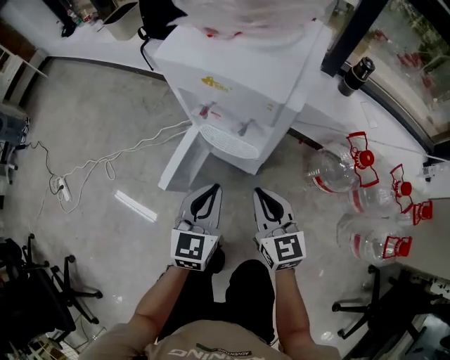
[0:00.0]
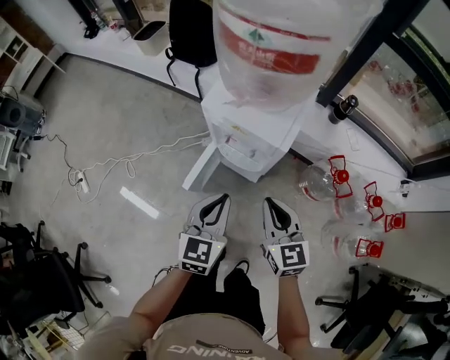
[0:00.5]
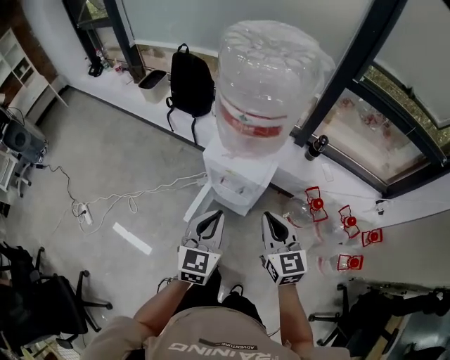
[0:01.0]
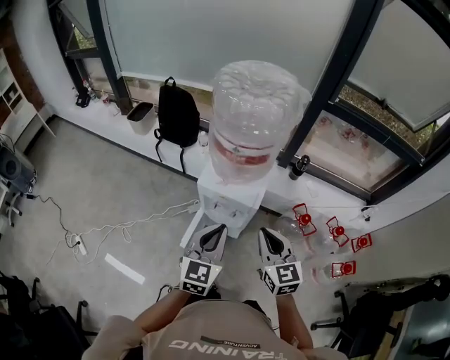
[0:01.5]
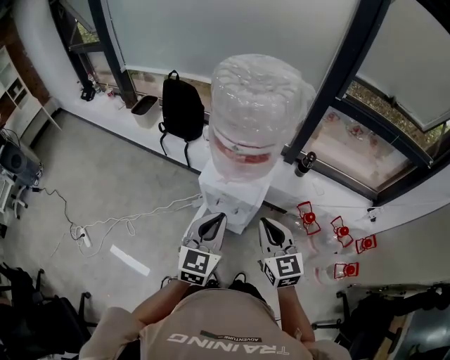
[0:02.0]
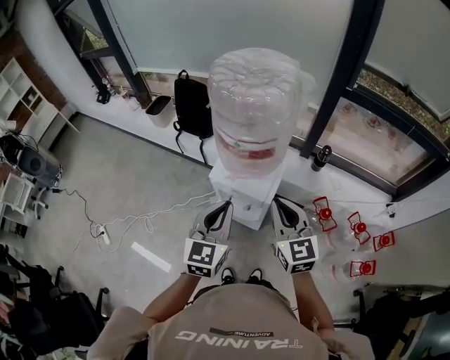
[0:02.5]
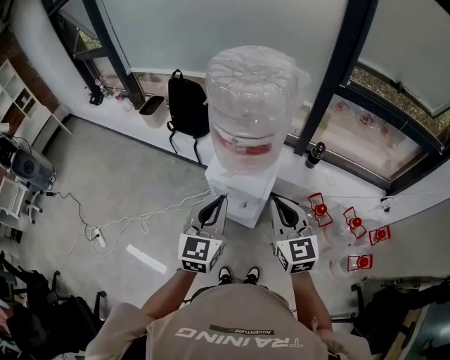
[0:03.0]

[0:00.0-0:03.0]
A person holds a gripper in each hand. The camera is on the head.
0:00.0 to 0:01.5: The grippers both shift upward by roughly 40 cm.
0:01.5 to 0:03.0: Both grippers travel together forward, roughly 5 cm.

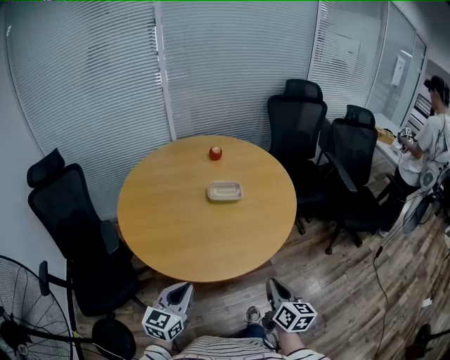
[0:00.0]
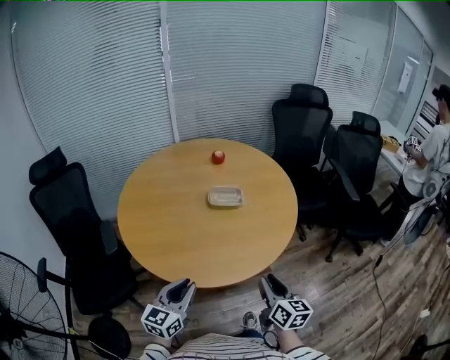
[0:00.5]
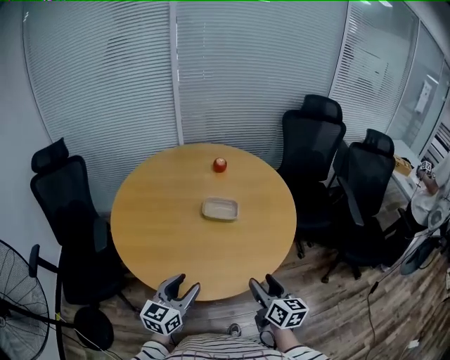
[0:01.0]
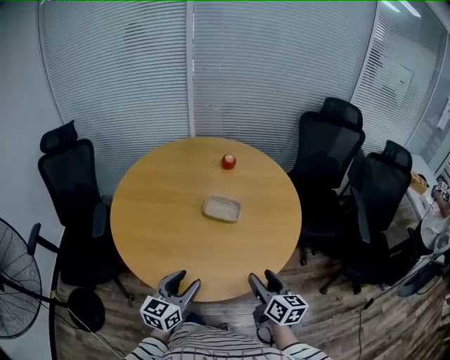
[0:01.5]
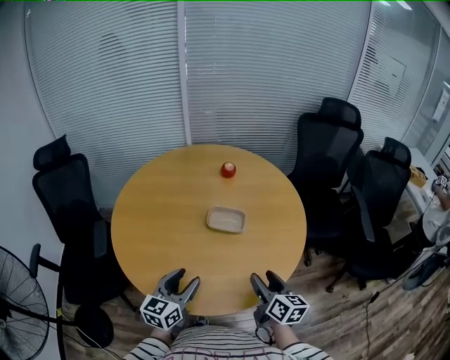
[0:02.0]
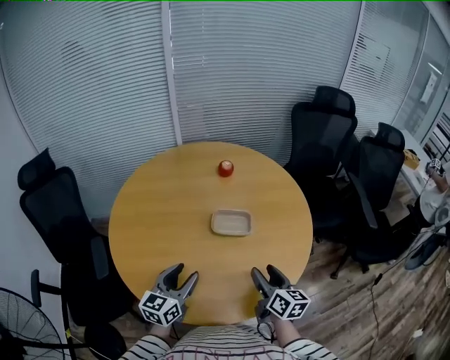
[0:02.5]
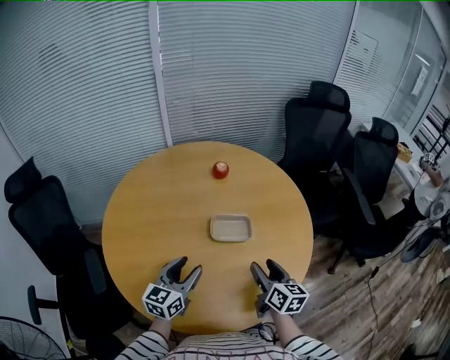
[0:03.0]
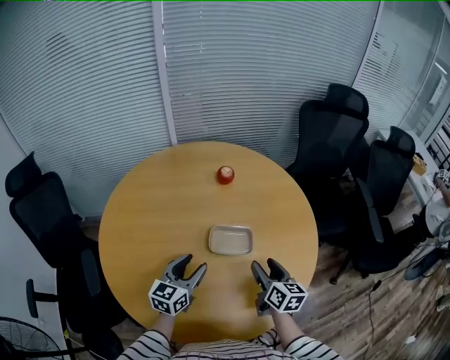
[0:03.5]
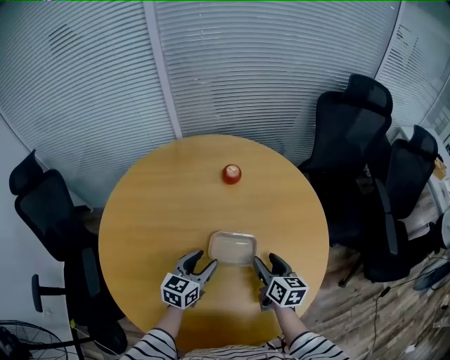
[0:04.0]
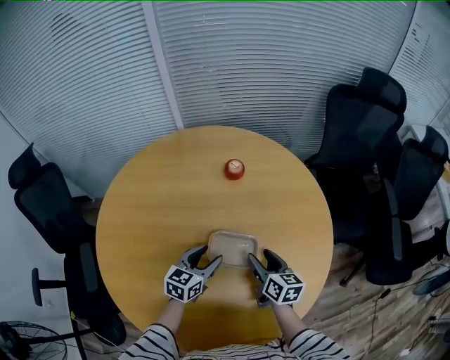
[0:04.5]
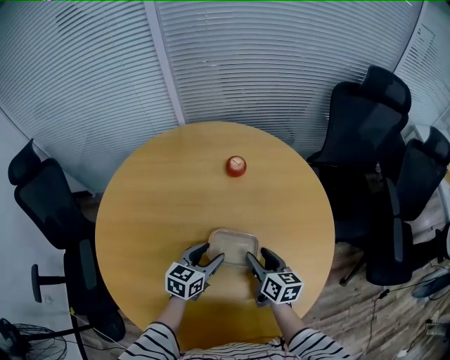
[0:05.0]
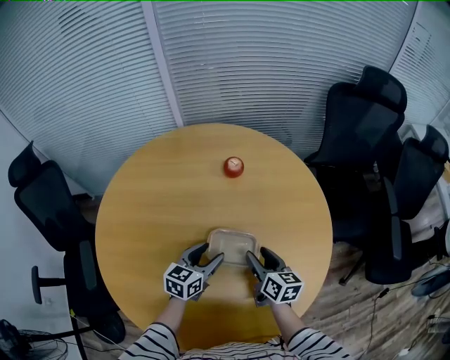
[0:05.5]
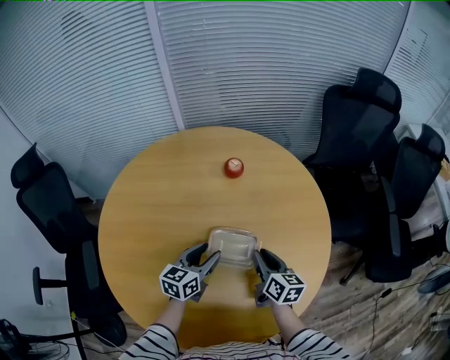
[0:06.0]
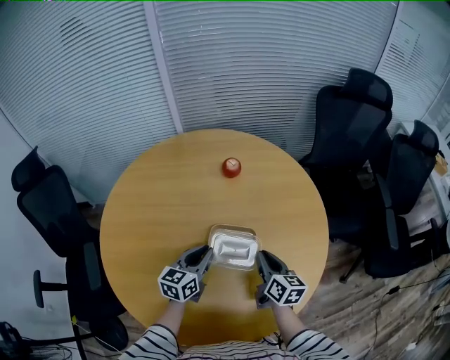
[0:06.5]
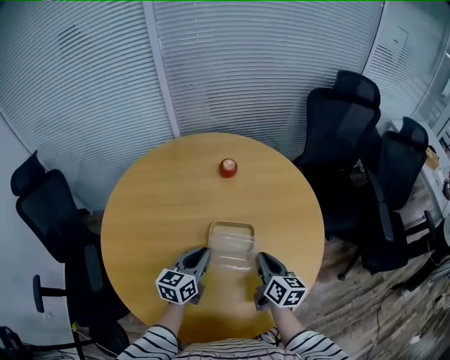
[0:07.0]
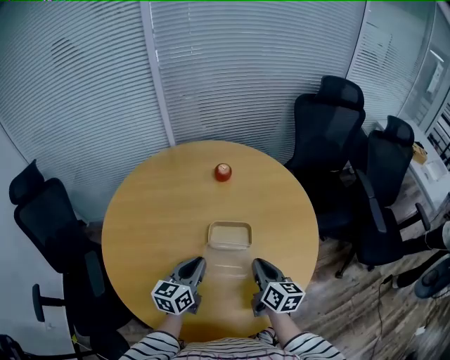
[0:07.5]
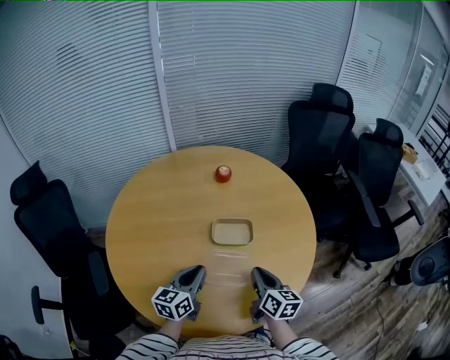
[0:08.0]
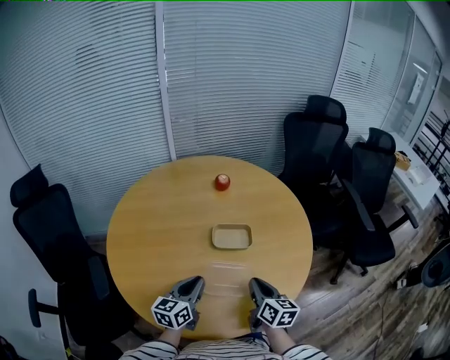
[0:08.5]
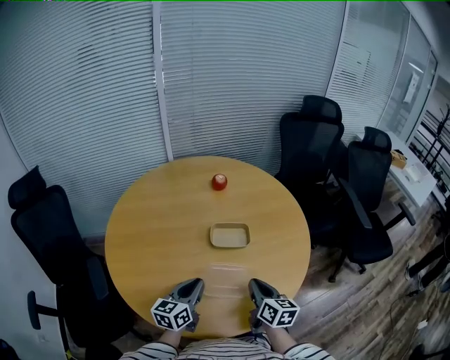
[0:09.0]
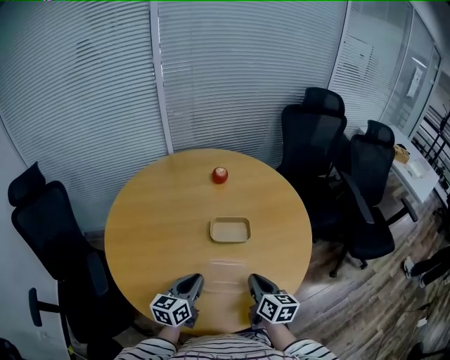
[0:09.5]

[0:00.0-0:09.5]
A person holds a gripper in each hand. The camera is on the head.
0:00.0 to 0:02.0: Both grippers move forward, about 25 cm. The left gripper opens its fingers. The right gripper opens.
0:02.0 to 0:04.0: Both grippers move forward, roughly 30 cm.
0:04.0 to 0:05.5: There are only small adjustments of the grippers.
0:05.5 to 0:07.5: The two grippers go some 15 cm backward and upward. The right gripper closes, while the left gripper closes up.
0:07.5 to 0:09.5: The grippers both shift backward by some 10 cm.

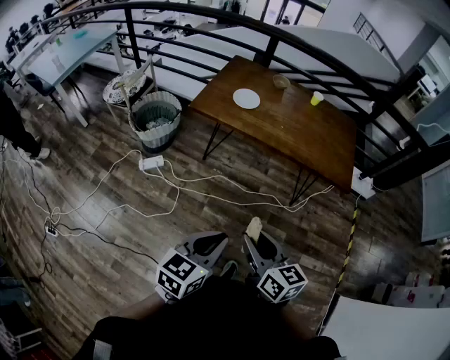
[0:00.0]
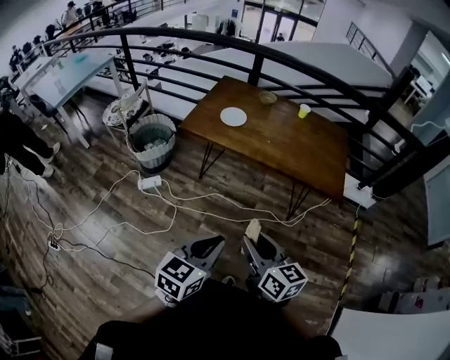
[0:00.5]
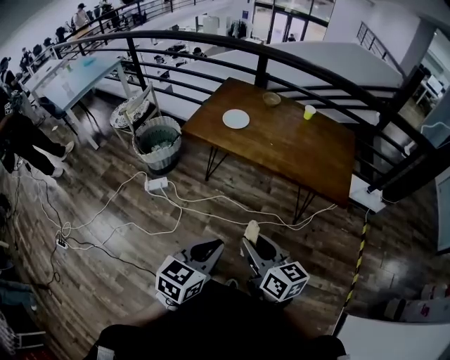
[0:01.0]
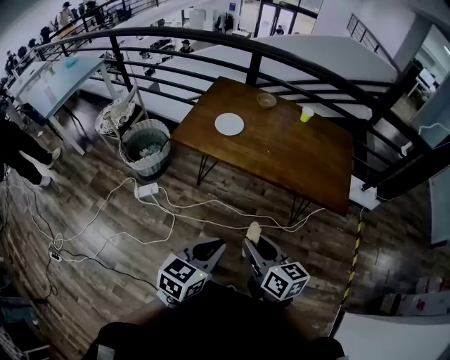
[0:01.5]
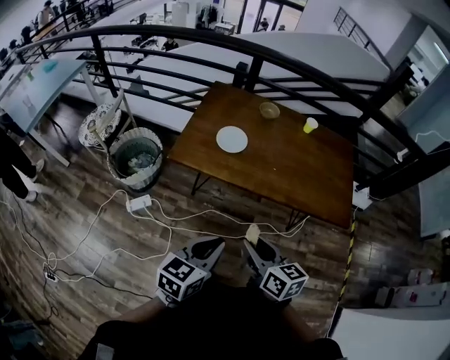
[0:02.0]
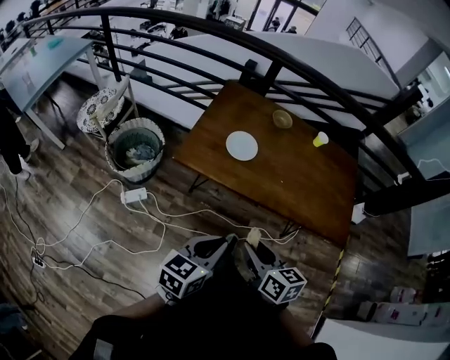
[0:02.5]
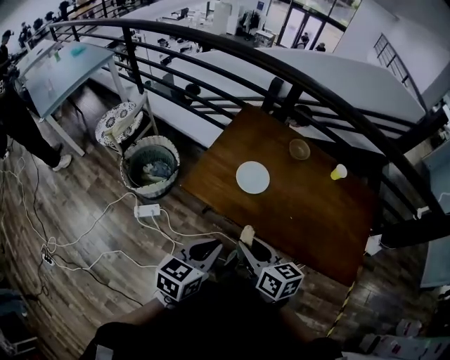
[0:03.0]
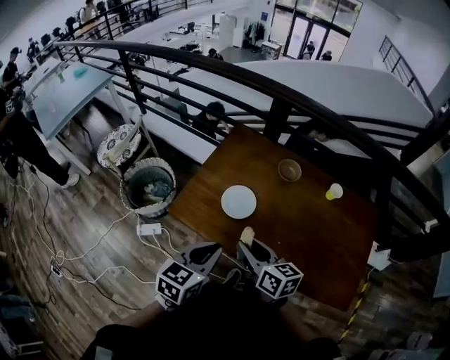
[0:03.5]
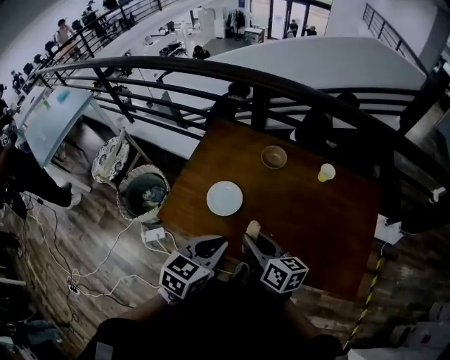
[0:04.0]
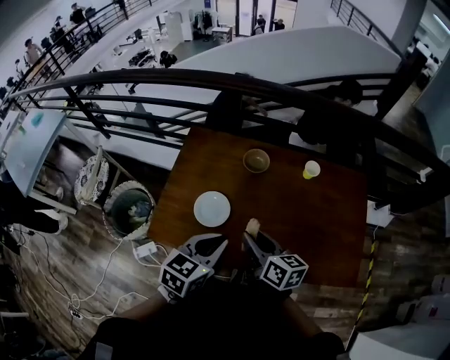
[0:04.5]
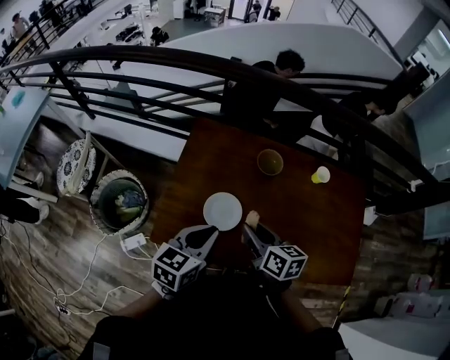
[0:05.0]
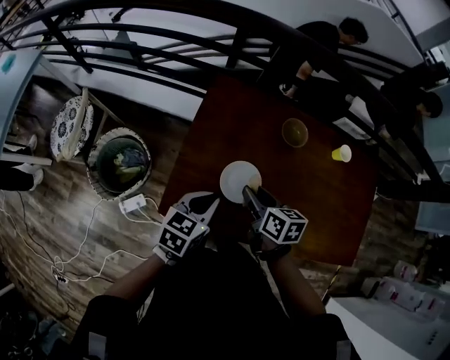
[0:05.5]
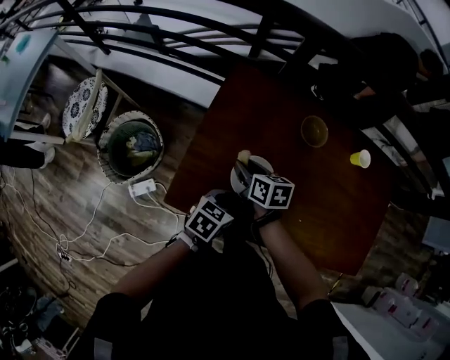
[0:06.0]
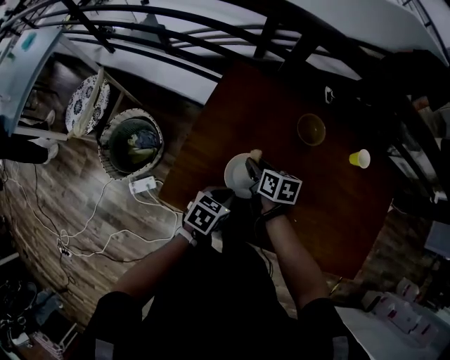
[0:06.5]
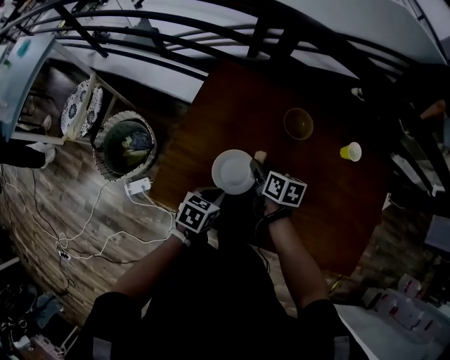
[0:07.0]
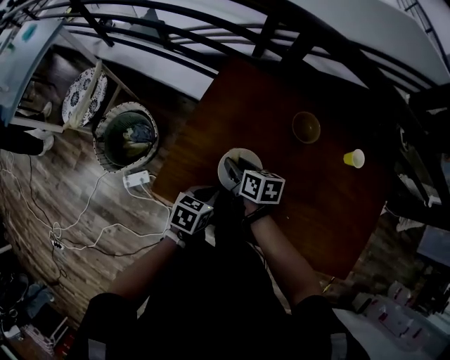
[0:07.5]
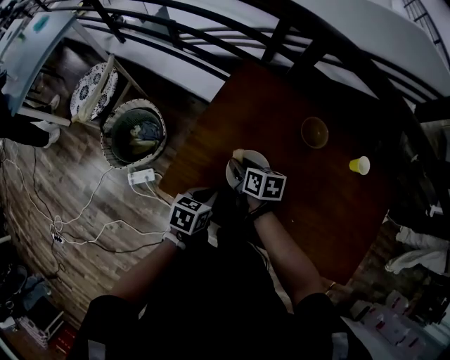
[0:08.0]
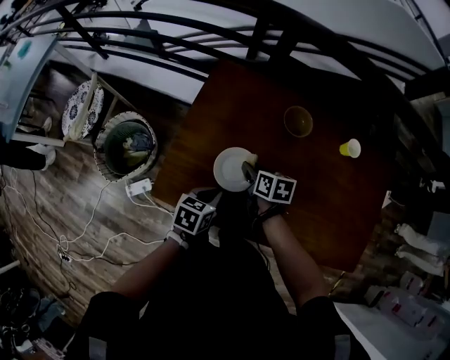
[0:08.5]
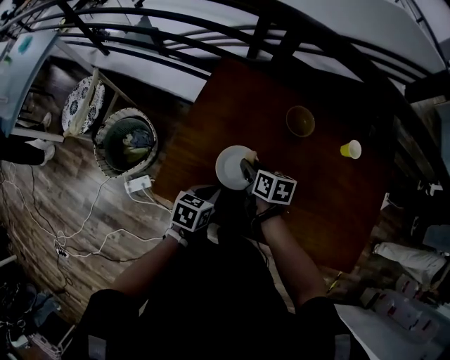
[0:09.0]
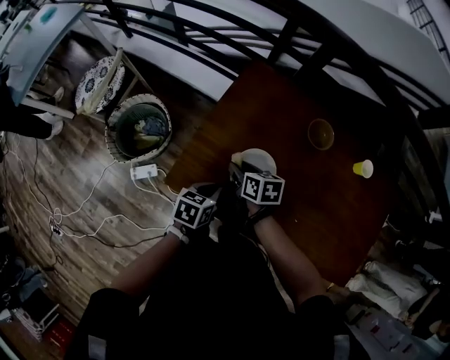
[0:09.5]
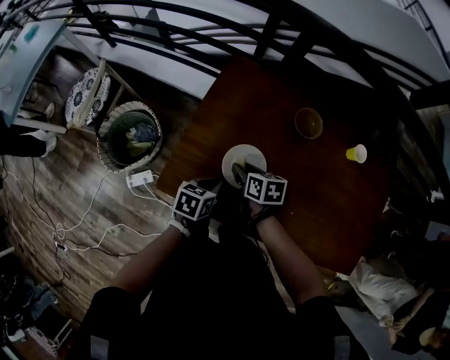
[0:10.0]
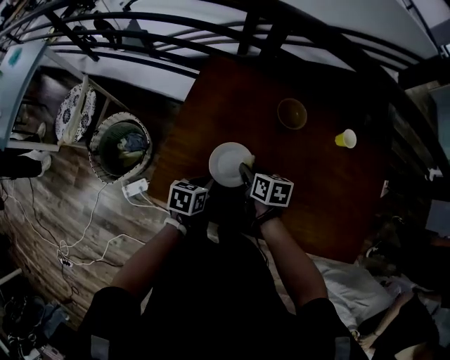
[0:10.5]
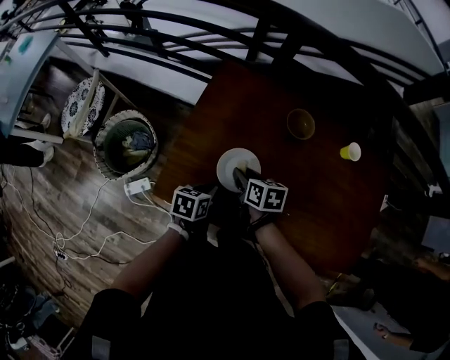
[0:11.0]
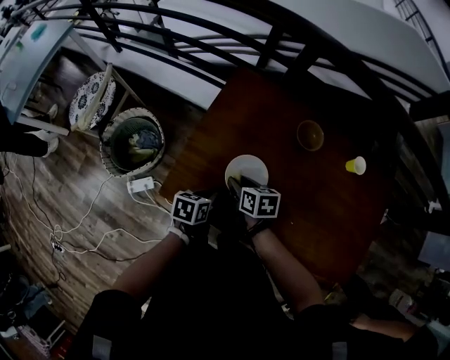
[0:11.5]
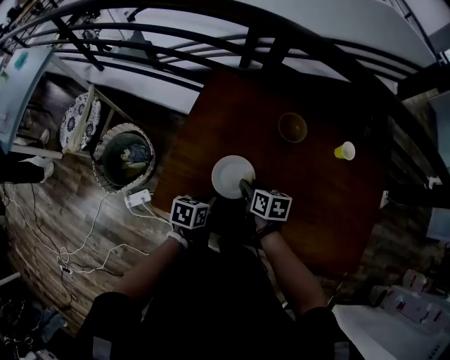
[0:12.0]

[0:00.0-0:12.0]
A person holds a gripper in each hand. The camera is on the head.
0:00.0 to 0:02.0: Both grippers move forward, roughly 25 cm.
0:02.0 to 0:04.0: The grippers both shift forward by about 30 cm.
0:04.0 to 0:06.0: The left gripper goes some 25 cm downward, to the left and forward, and rotates roughly 20 degrees. Meanwhile the right gripper is displaced to the left, forward and downward by roughly 30 cm, and changes its angle by some 20 degrees.
0:06.0 to 0:08.0: The left gripper changes place by about 5 cm; the right gripper reaches roughly 15 cm to the right, then returns.
0:08.0 to 0:10.0: The right gripper goes left and right, some 10 cm each way, reversing 2 times.
0:10.0 to 0:12.0: The right gripper goes left and right, about 10 cm each way, reversing 2 times.

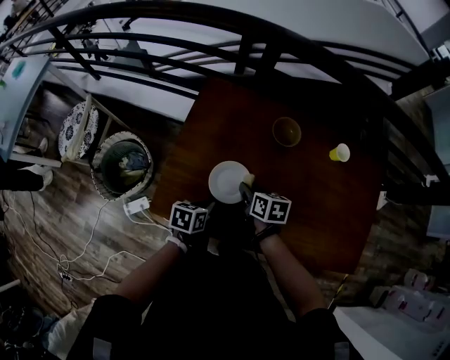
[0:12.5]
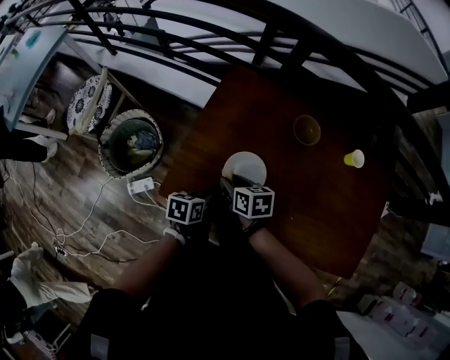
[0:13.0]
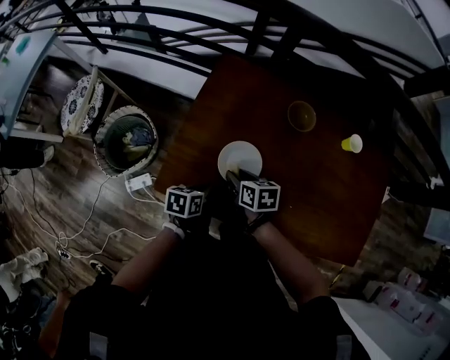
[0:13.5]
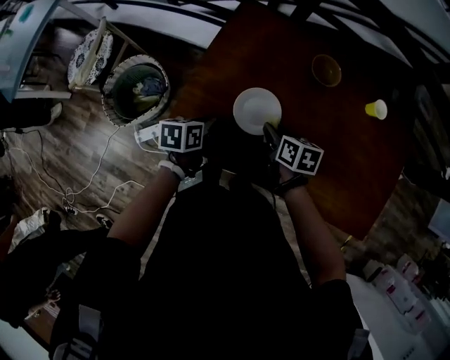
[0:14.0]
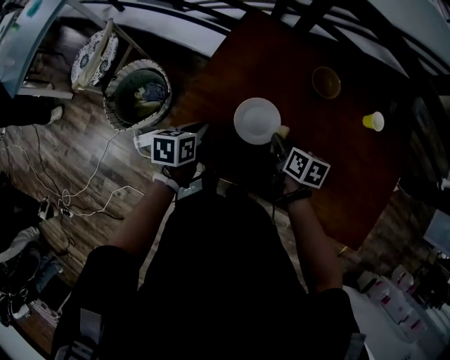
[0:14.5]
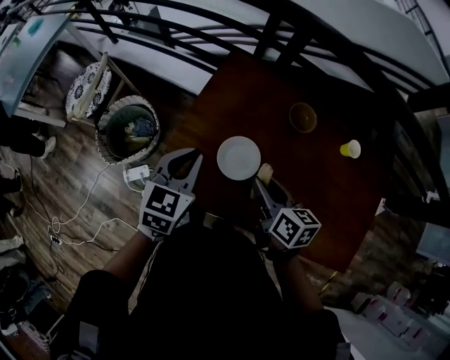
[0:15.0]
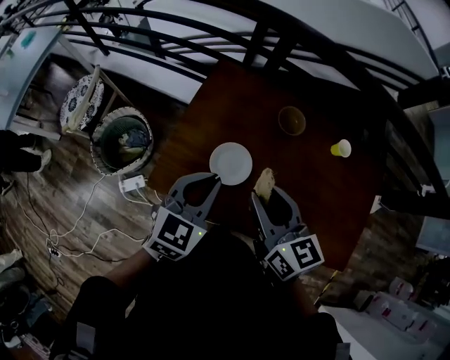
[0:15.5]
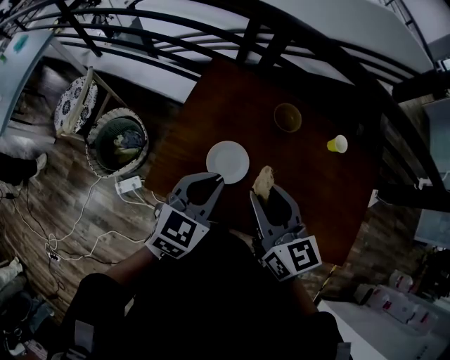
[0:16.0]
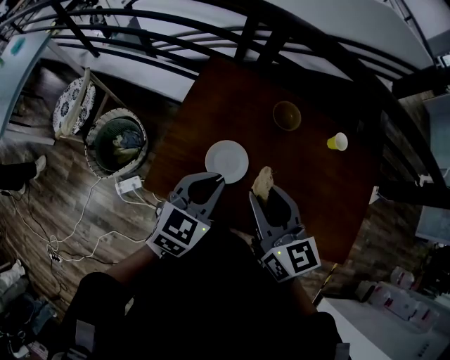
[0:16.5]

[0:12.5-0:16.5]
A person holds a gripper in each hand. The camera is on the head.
0:12.5 to 0:14.5: The right gripper travels to the left and back again, roughly 15 cm each way; the left gripper goes approximately 10 cm to the left.
0:14.5 to 0:16.5: The right gripper travels upward by about 25 cm, and tilts its fingers roughly 30 degrees upward; the left gripper goes some 25 cm upward and to the right, and rotates around the line of its fingers by approximately 40 degrees, clockwise from behind.
